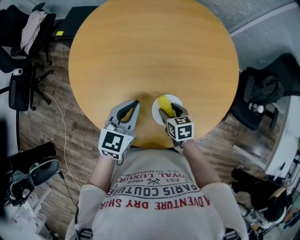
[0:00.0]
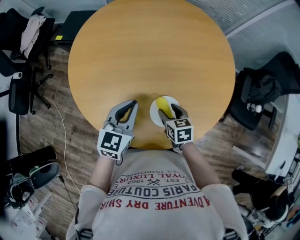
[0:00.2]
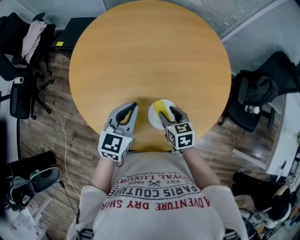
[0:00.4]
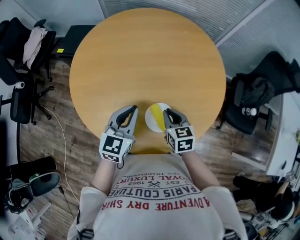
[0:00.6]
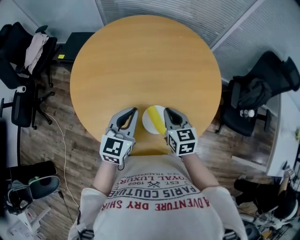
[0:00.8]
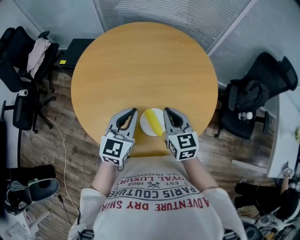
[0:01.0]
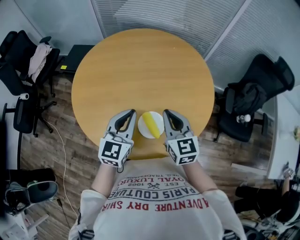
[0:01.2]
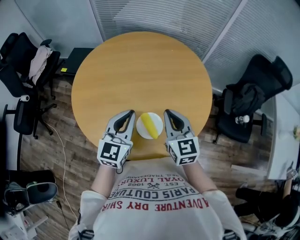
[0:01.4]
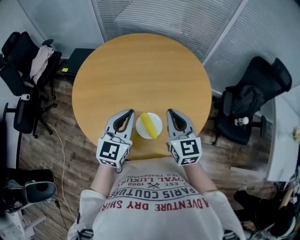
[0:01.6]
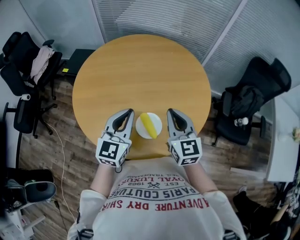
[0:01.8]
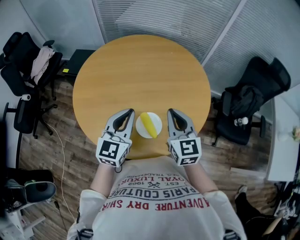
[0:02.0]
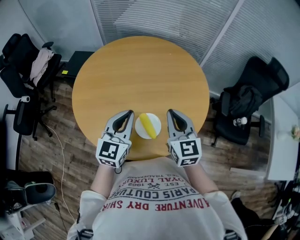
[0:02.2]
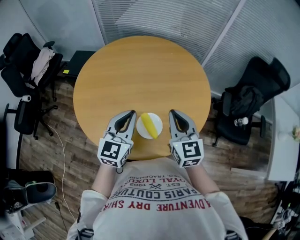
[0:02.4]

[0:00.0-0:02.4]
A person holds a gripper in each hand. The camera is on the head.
0:00.0 to 0:01.2: The right gripper travels upward by approximately 25 cm, angles its fingers upward, by roughly 40 degrees, and closes up. Meanwhile the left gripper goes approximately 10 cm upward and to the right.
0:01.2 to 0:02.4: The right gripper shifts by approximately 5 cm.

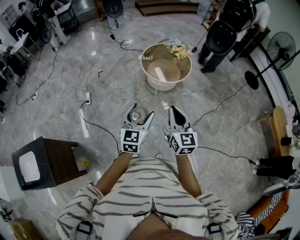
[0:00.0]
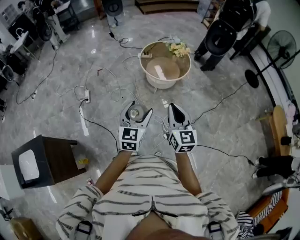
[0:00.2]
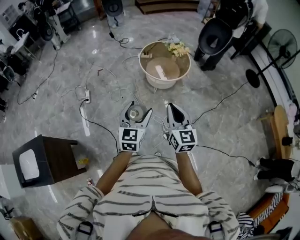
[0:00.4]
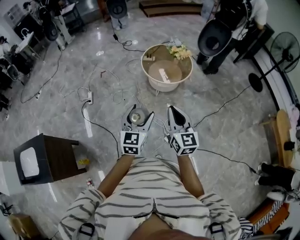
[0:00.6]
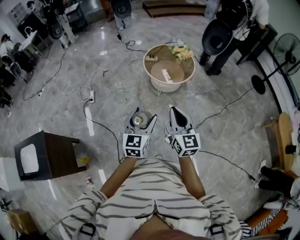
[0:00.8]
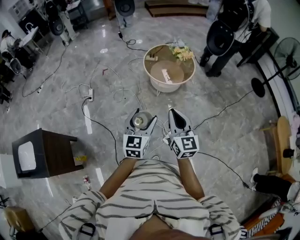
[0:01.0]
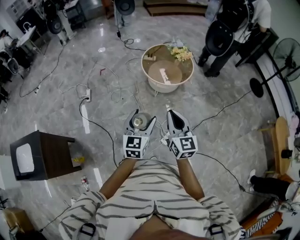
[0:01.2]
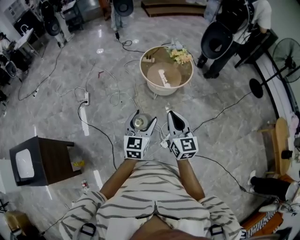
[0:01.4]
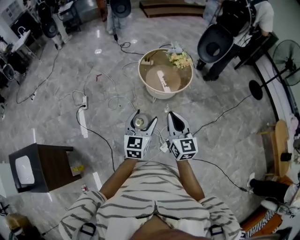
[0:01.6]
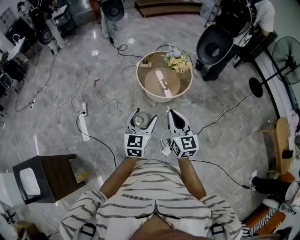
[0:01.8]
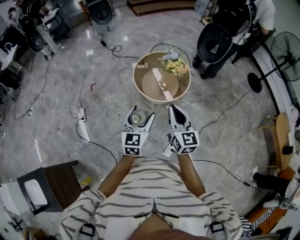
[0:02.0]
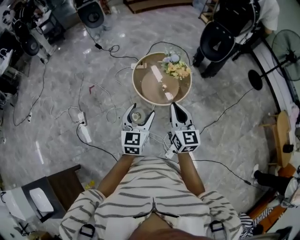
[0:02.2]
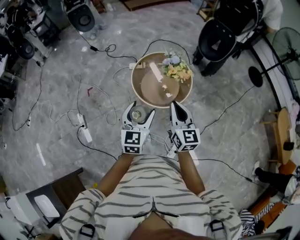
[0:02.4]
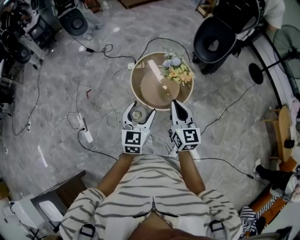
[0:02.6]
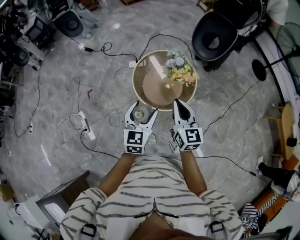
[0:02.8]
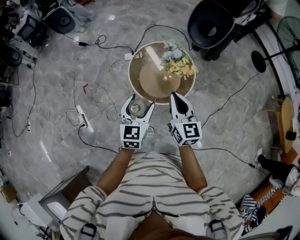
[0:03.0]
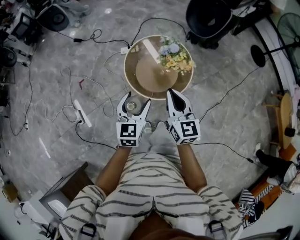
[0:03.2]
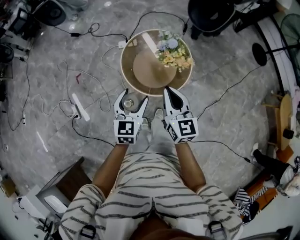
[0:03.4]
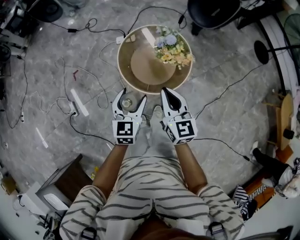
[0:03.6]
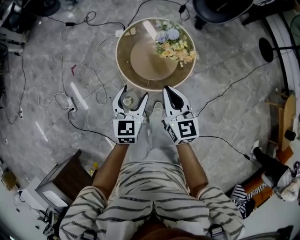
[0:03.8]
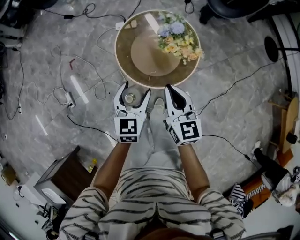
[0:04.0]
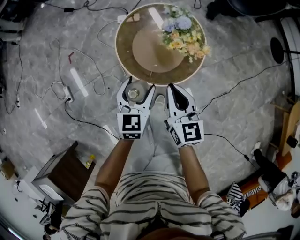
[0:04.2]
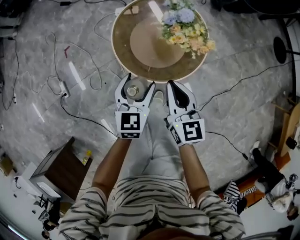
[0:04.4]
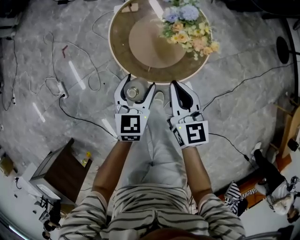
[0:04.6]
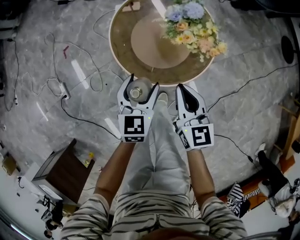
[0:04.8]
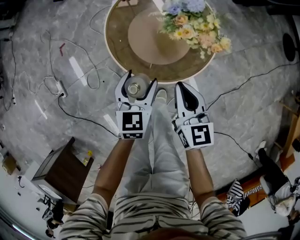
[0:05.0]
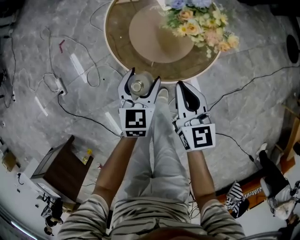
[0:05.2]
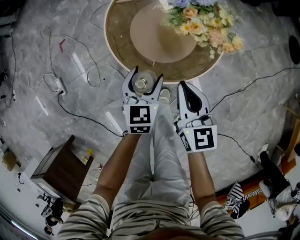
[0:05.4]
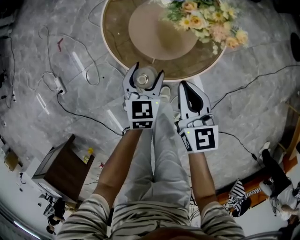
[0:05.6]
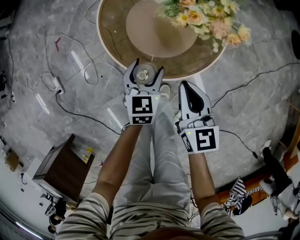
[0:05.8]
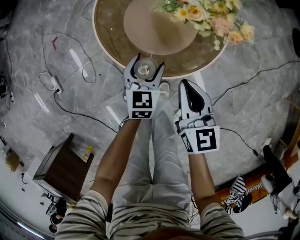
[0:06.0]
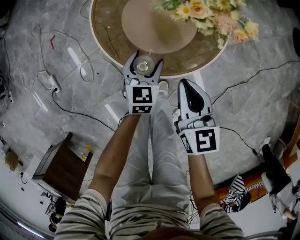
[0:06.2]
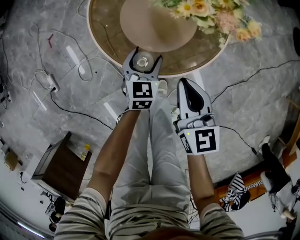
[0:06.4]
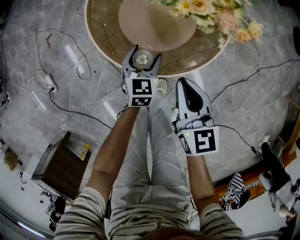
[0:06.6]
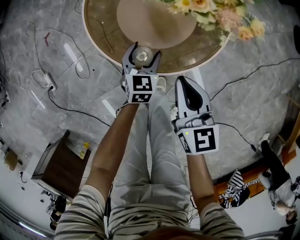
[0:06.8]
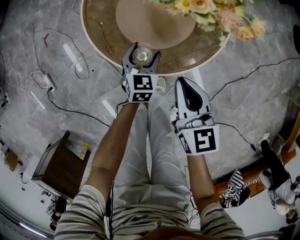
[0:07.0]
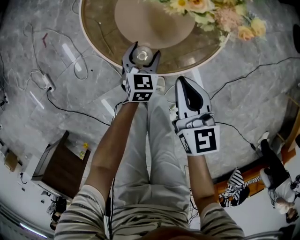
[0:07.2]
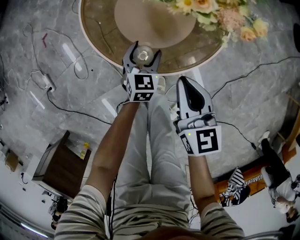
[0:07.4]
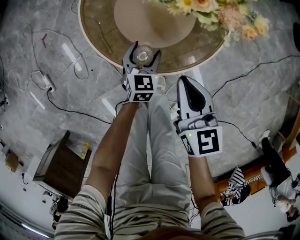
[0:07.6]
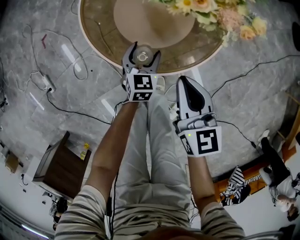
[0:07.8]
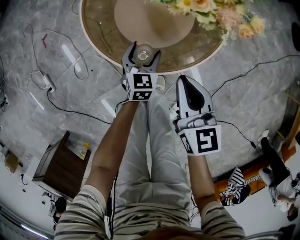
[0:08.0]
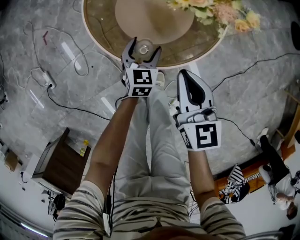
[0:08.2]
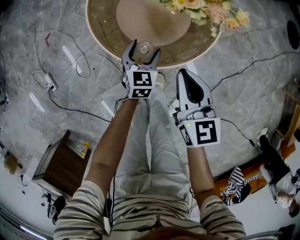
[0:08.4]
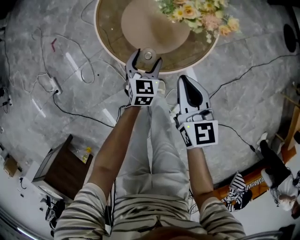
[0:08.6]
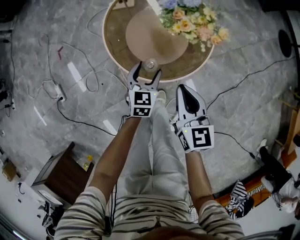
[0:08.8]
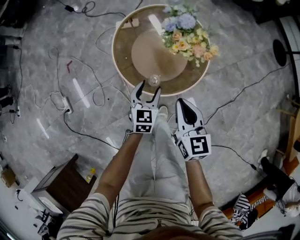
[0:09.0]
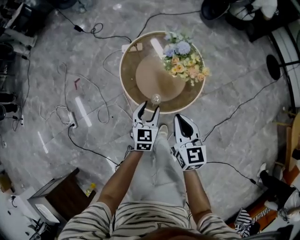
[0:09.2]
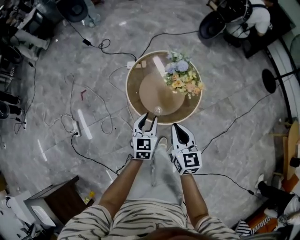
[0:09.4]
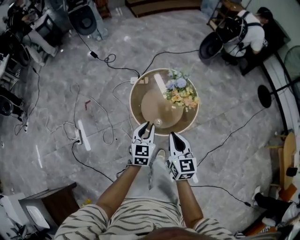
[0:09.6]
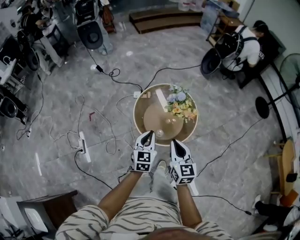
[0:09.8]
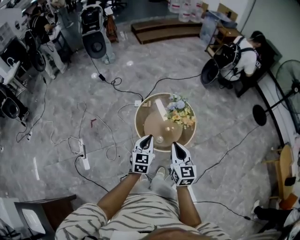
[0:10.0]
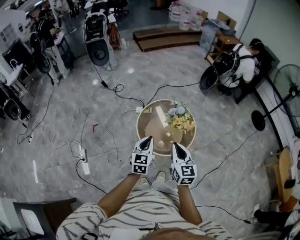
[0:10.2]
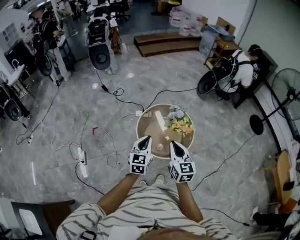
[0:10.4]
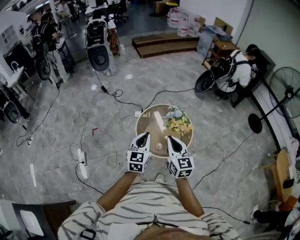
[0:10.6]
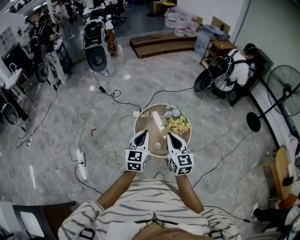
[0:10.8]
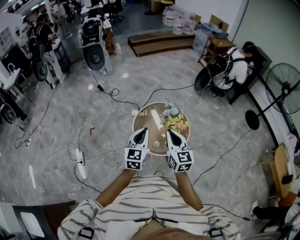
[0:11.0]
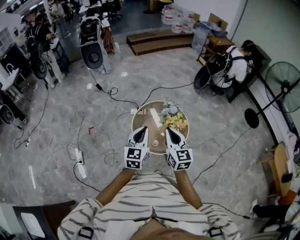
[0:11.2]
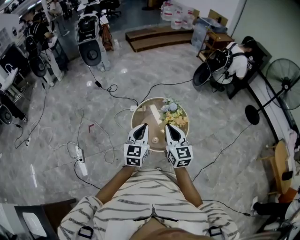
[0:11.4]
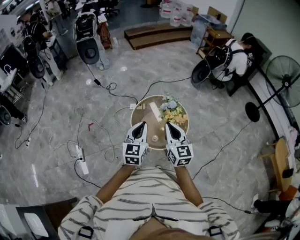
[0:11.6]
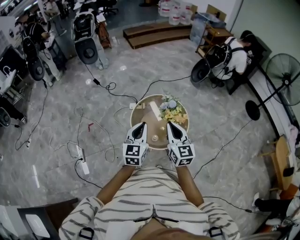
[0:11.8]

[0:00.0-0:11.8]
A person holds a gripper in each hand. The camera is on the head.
0:00.0 to 0:01.4: The right gripper travels forward and to the right by roughly 10 cm; the left gripper travels to the right by approximately 5 cm.
0:01.4 to 0:03.0: The two grippers travel together, forward, about 50 cm.
0:03.0 to 0:04.4: Both grippers move downward, roughly 20 cm.
0:04.4 to 0:06.0: Both grippers move downward, roughly 20 cm.
0:06.0 to 0:07.4: The left gripper is displaced downward by about 10 cm.
0:07.4 to 0:08.8: The grippers both shift upward by some 10 cm.
0:08.8 to 0:10.4: Both grippers travel together upward, approximately 35 cm. The left gripper swivels some 20 degrees, and closes.
0:10.4 to 0:11.8: The left gripper moves some 5 cm, while the right gripper changes place by about 5 cm.

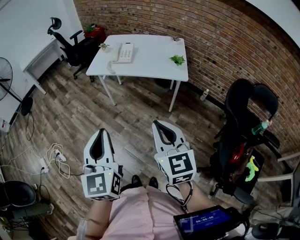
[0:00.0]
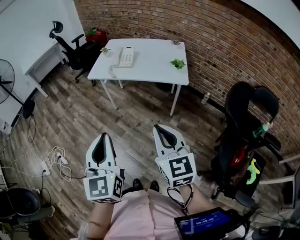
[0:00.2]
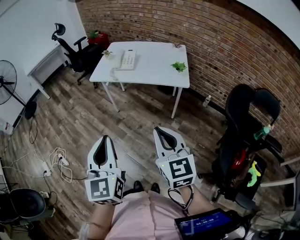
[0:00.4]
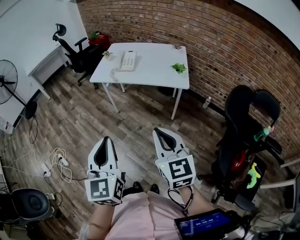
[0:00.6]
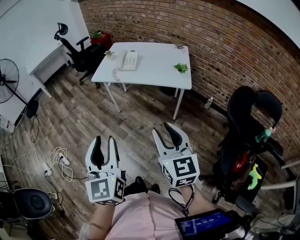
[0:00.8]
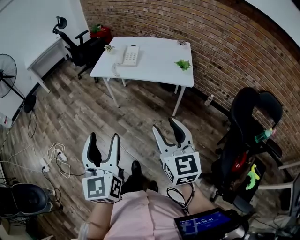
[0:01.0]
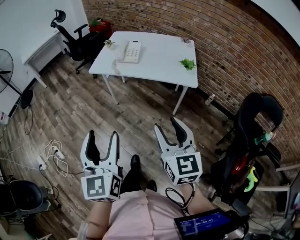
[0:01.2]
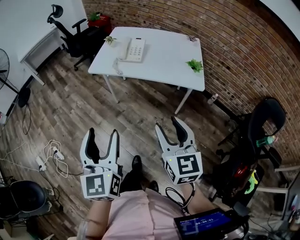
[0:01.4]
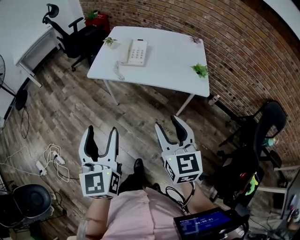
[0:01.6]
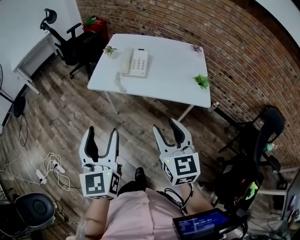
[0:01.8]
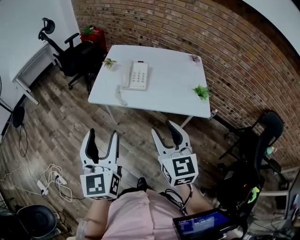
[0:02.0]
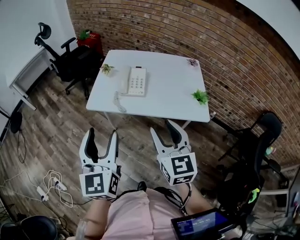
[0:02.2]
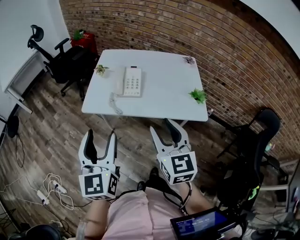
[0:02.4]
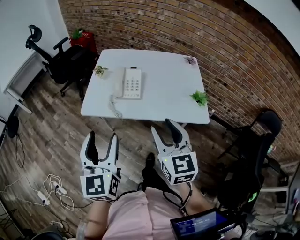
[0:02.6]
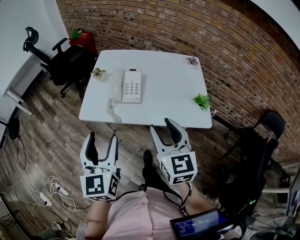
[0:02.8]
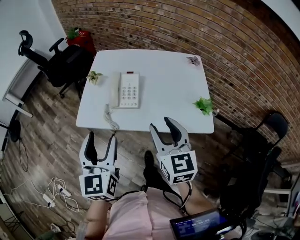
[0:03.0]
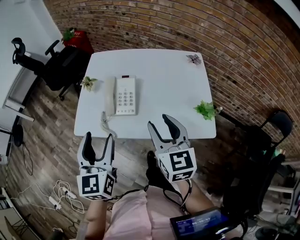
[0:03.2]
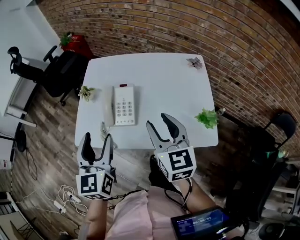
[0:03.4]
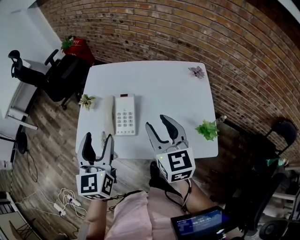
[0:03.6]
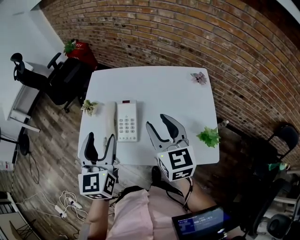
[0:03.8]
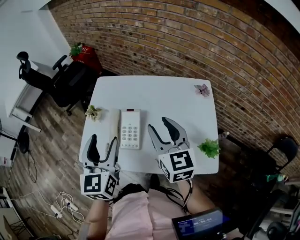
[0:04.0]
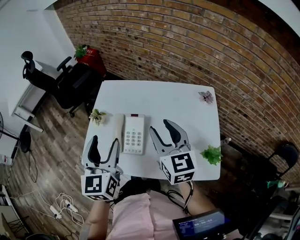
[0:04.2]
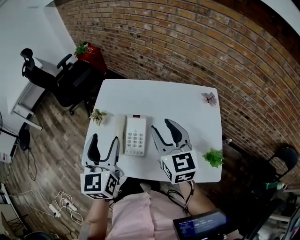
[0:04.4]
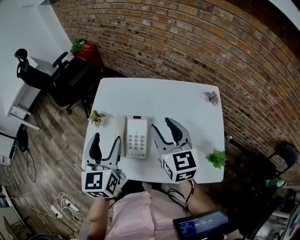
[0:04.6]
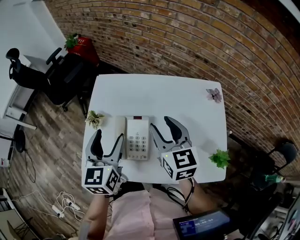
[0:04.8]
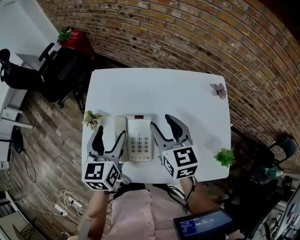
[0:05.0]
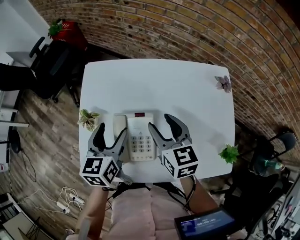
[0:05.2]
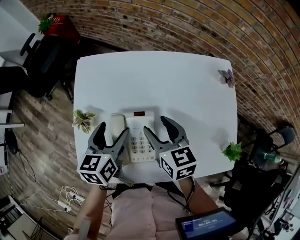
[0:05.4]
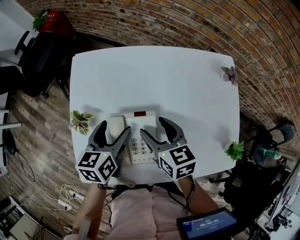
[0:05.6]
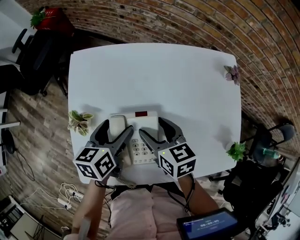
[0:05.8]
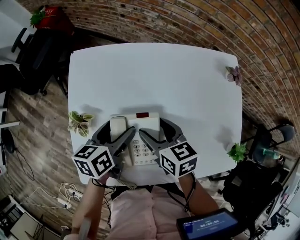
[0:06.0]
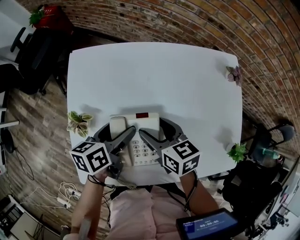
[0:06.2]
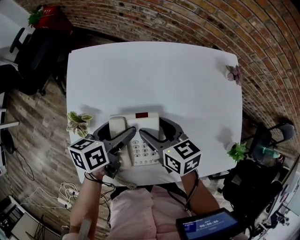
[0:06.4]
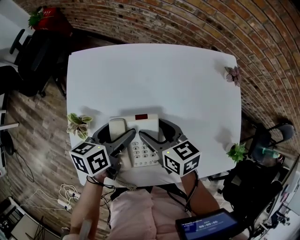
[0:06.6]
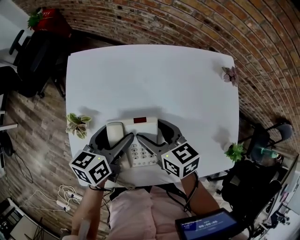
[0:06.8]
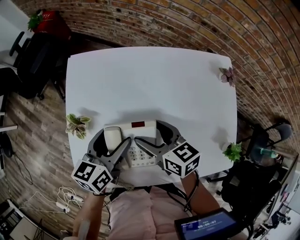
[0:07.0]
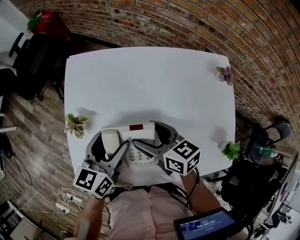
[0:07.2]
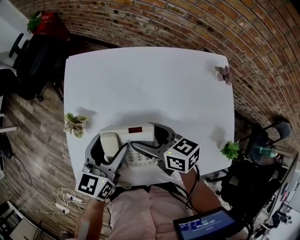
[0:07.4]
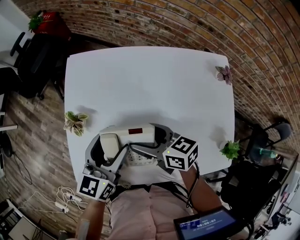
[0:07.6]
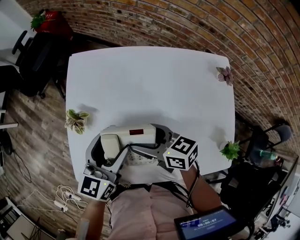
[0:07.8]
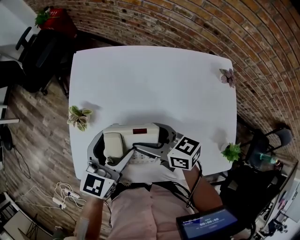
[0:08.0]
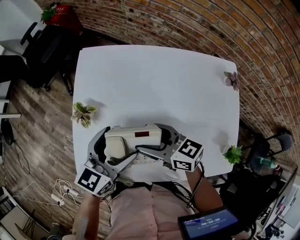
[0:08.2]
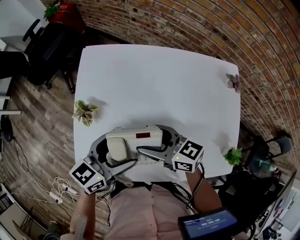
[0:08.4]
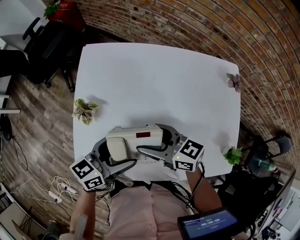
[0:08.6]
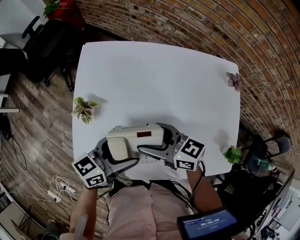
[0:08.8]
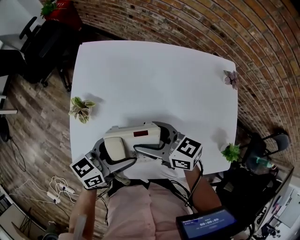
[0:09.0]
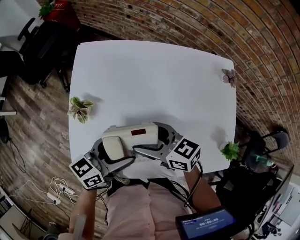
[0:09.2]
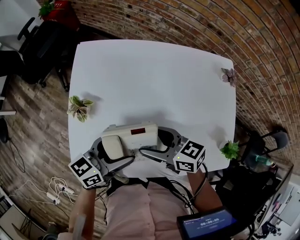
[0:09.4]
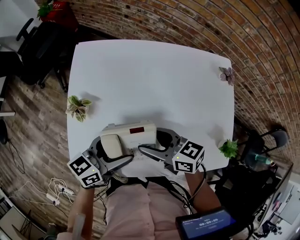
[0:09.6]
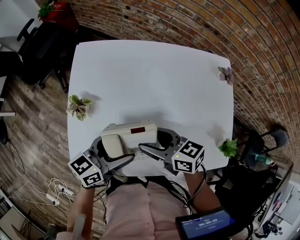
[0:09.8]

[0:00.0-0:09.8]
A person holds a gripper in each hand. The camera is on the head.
0:00.0 to 0:01.4: The two grippers go about 10 cm forward. The right gripper opens. The left gripper opens up.
0:01.4 to 0:02.8: Both grippers travel together forward, some 30 cm.
0:02.8 to 0:04.2: The grippers both shift forward by about 25 cm.
0:04.2 to 0:05.6: Both grippers move downward and forward, about 25 cm. The right gripper rotates about 30 degrees. Meanwhile the left gripper turns by about 40 degrees.
0:07.0 to 0:08.4: The right gripper changes place by roughly 5 cm, and swivels approximately 20 degrees; the left gripper shifts about 5 cm backward.
0:08.4 to 0:09.8: There are only small adjustments of the grippers.
